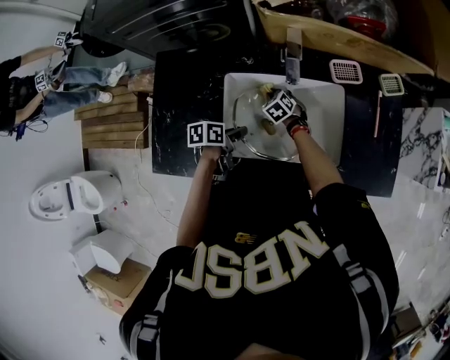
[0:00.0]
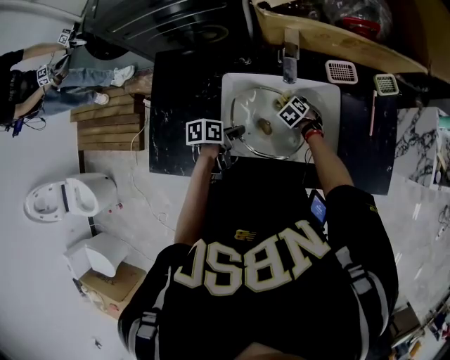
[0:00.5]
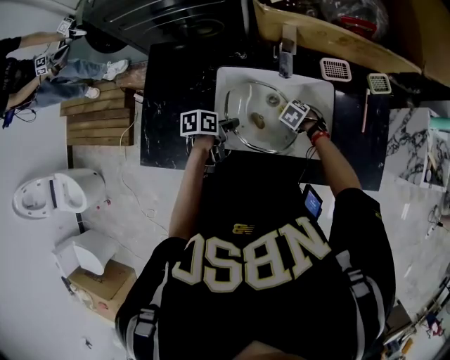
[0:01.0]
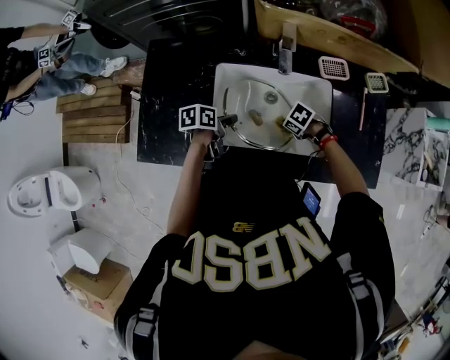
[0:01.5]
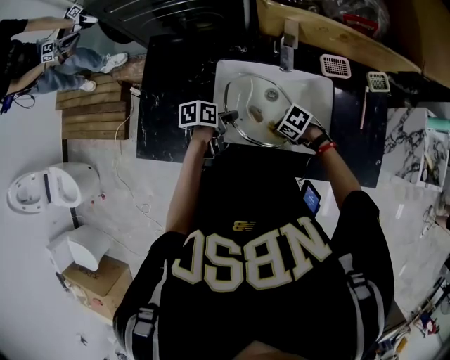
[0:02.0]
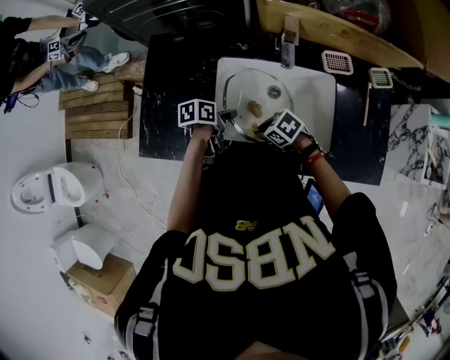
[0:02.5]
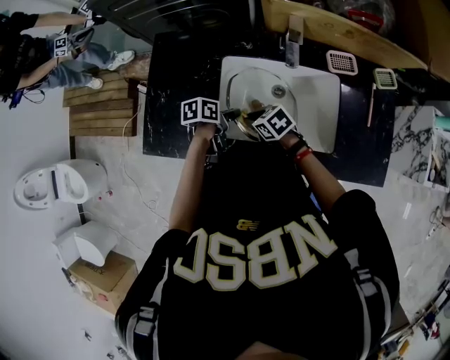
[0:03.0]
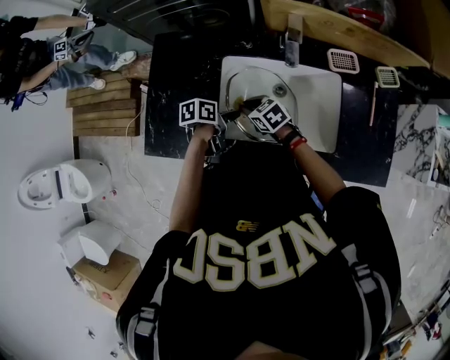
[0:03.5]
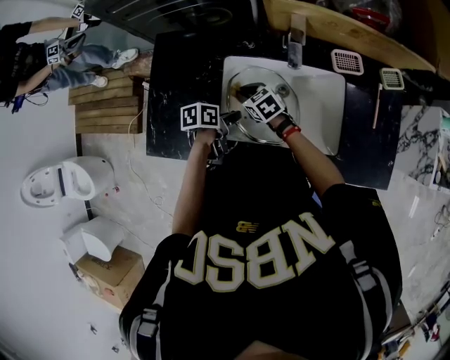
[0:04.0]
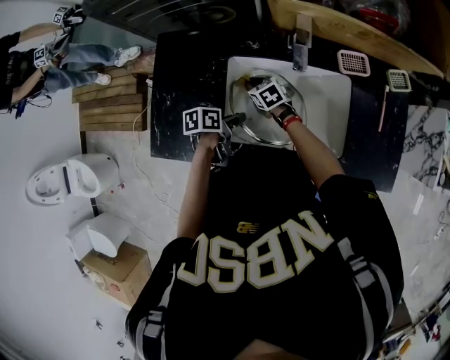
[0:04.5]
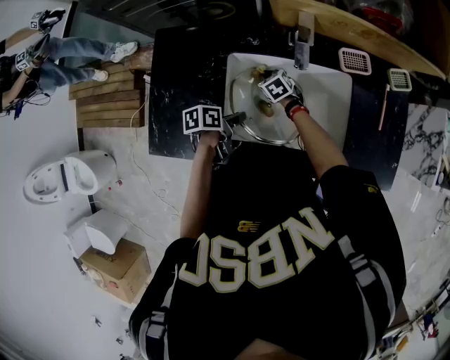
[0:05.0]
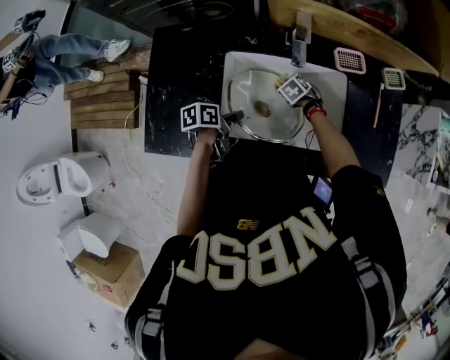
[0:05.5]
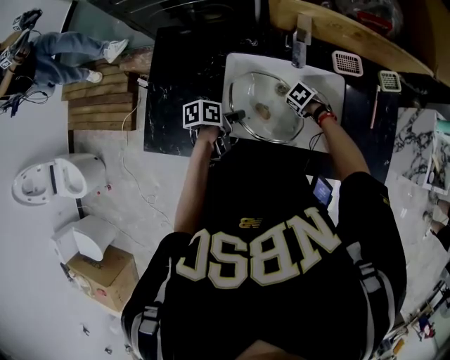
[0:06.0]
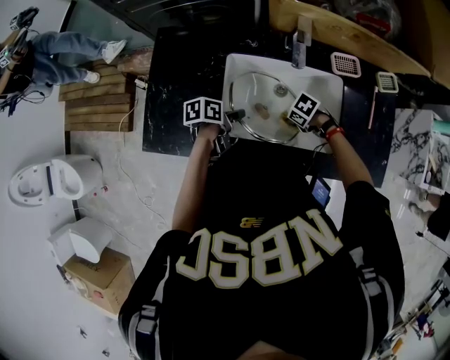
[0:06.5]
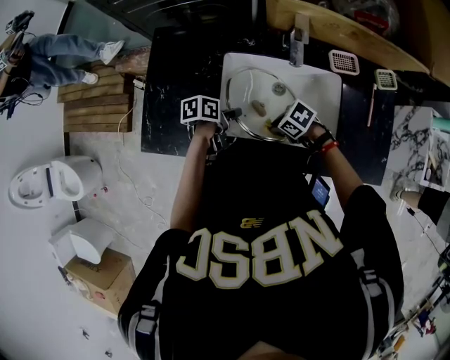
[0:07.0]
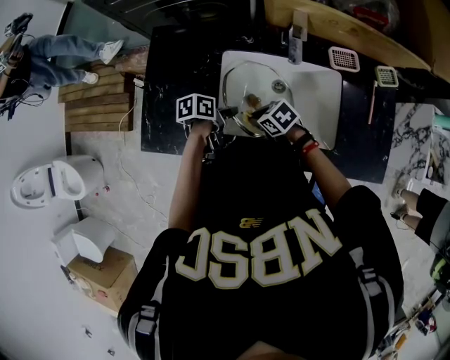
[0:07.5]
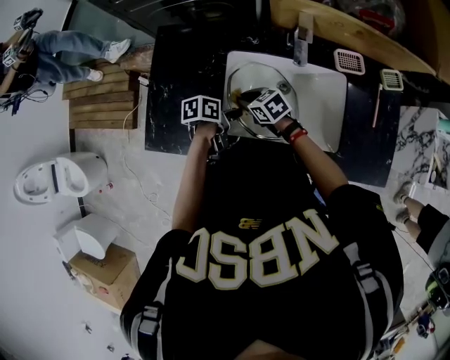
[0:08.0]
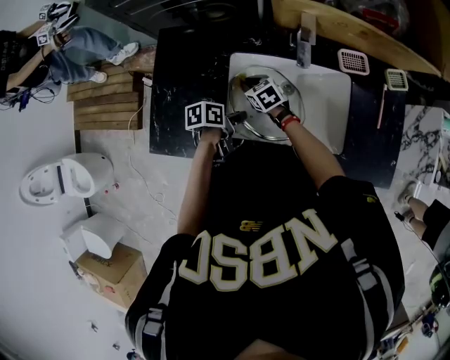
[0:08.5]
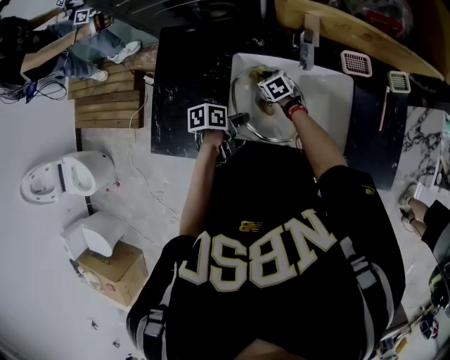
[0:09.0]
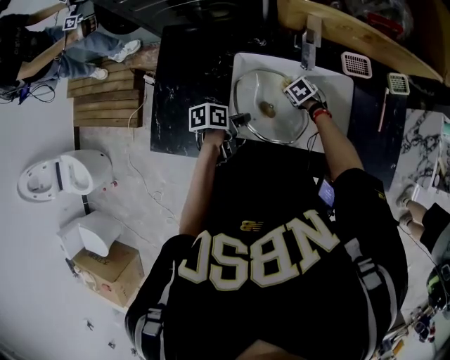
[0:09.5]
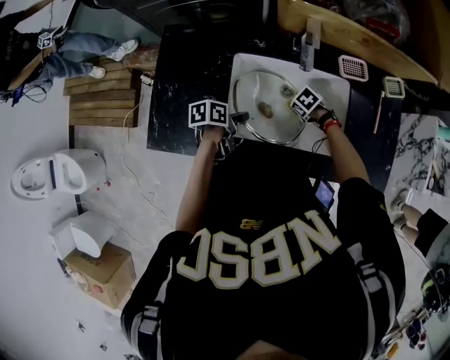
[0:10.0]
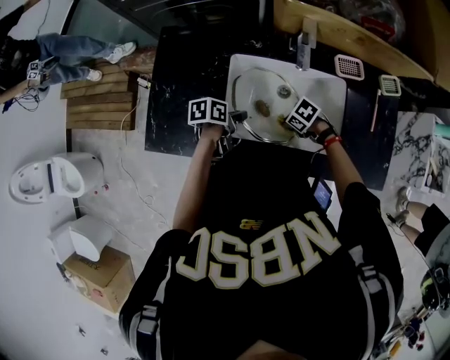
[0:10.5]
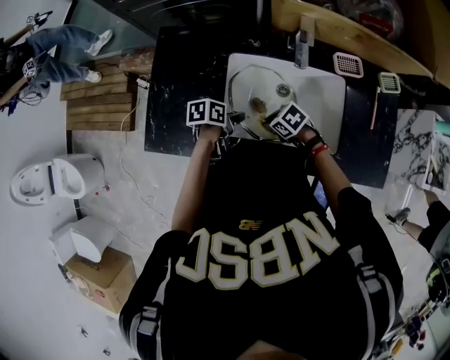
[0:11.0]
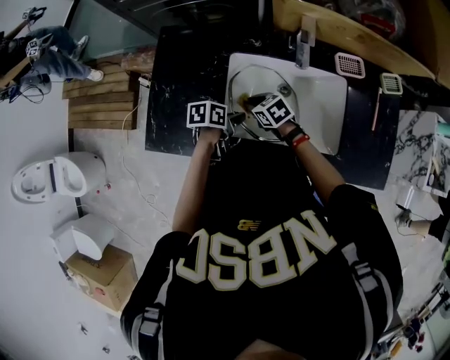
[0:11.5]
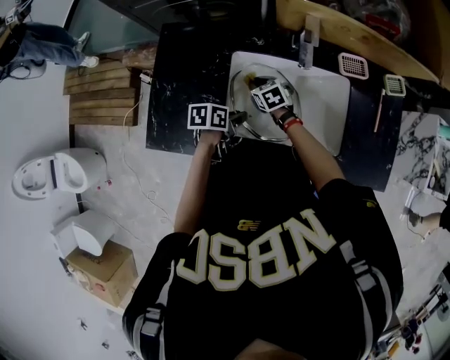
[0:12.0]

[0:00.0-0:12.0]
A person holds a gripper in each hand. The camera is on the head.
0:00.0 to 0:02.0: The right gripper ends up about 20 cm from where it was, and swivels some 40 degrees.
0:02.0 to 0:04.0: The right gripper ends up some 20 cm from where it was, and changes its angle by some 40 degrees.
0:04.0 to 0:06.0: The right gripper moves about 20 cm, and points its fingers some 40 degrees further downward.
0:06.0 to 0:08.0: The right gripper changes place by roughly 25 cm, and tips its fingers upward by some 40 degrees.
0:08.0 to 0:10.0: The right gripper shifts by some 20 cm, and angles its fingers downward, by some 30 degrees.
0:10.0 to 0:12.0: The right gripper ends up about 20 cm from where it was, and turns by about 40 degrees.

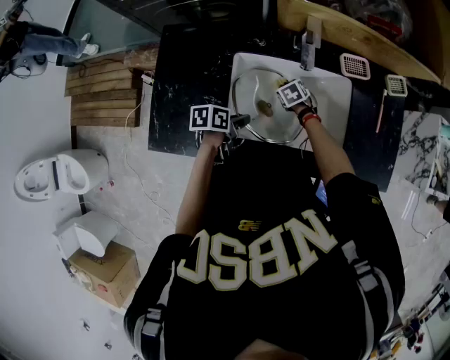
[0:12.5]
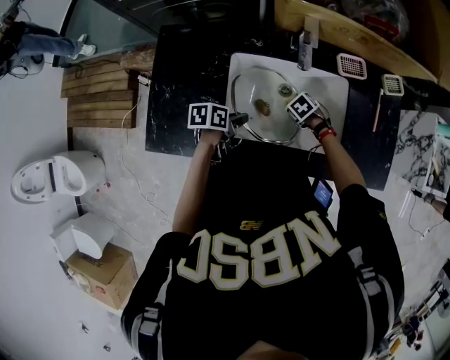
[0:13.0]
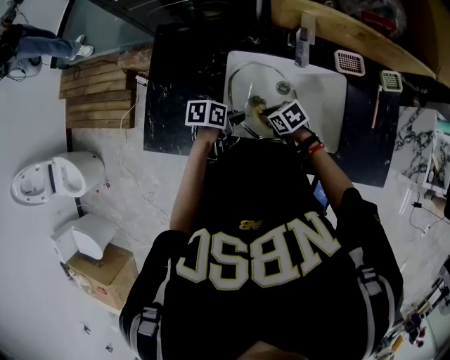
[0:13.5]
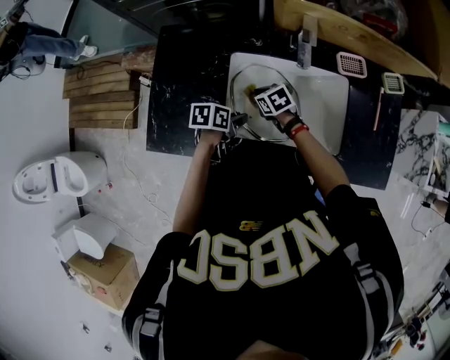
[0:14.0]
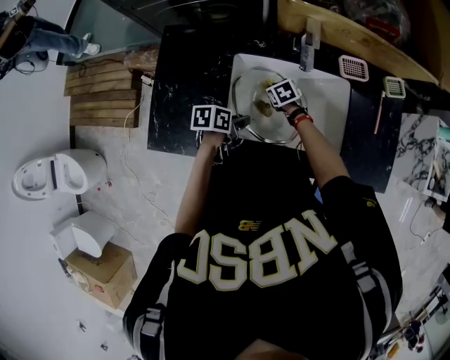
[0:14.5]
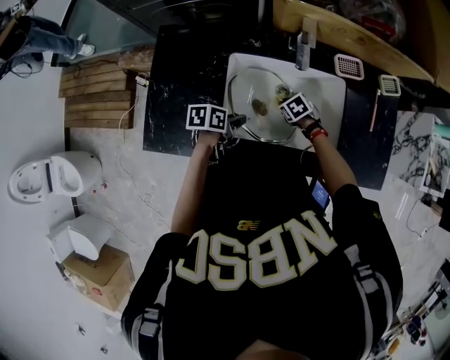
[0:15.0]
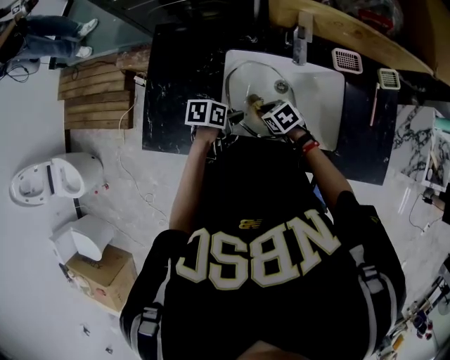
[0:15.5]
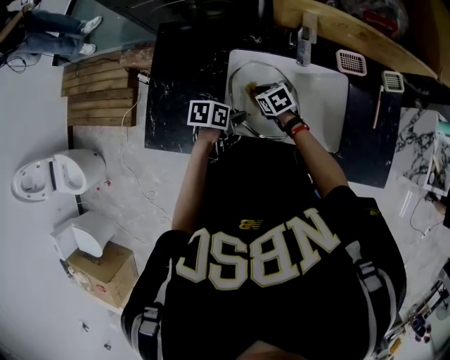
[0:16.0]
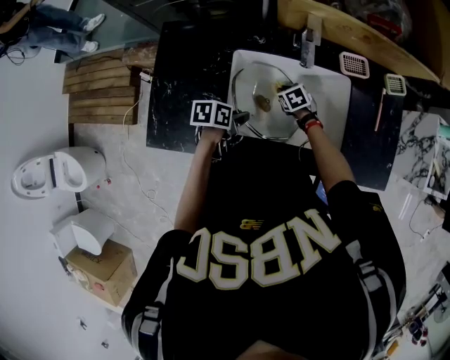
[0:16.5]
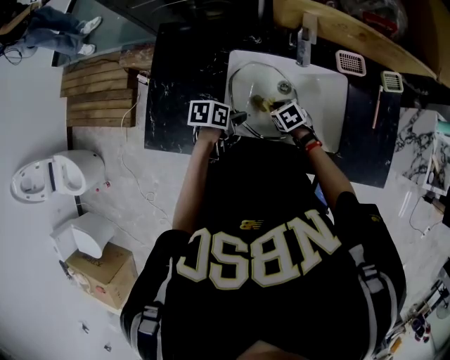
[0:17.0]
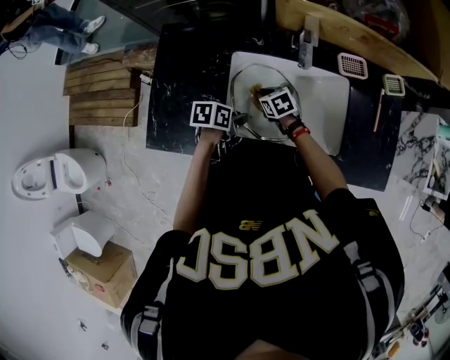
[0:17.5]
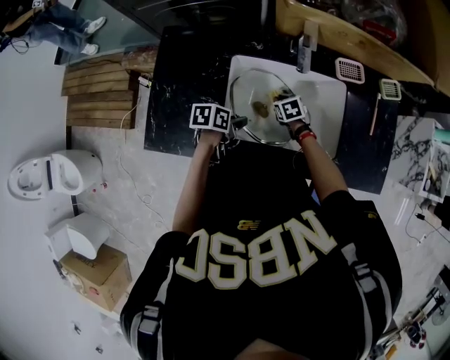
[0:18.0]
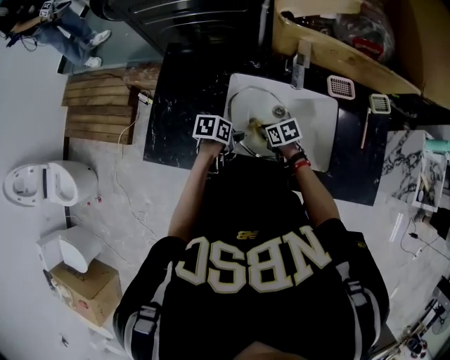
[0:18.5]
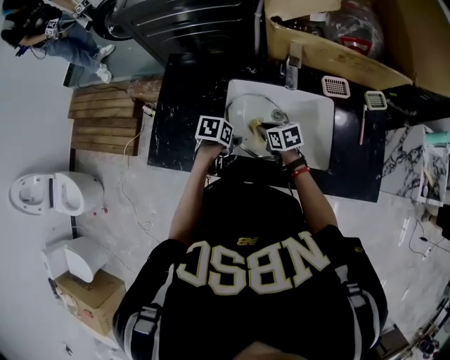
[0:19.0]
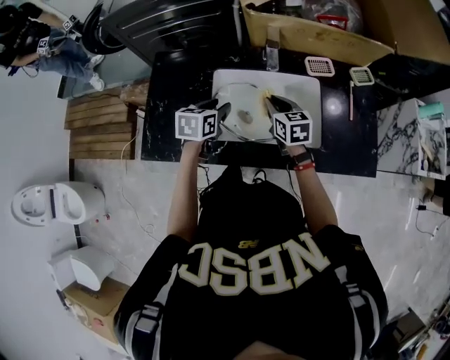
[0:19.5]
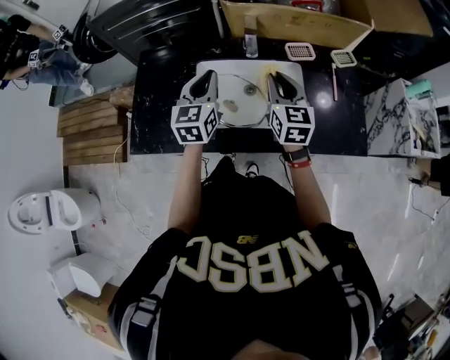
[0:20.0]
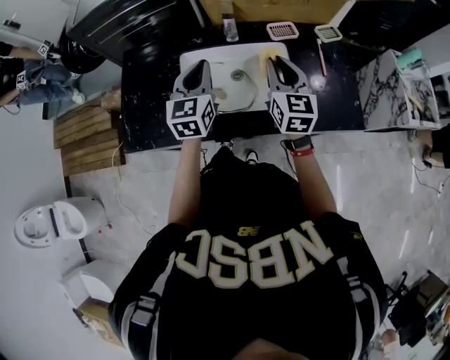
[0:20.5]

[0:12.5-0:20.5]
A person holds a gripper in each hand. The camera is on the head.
0:12.5 to 0:14.5: The right gripper travels upward and back again, about 10 cm each way.
0:16.5 to 0:18.5: The right gripper goes up and down, roughly 5 cm each way, reversing 2 times, and swivels roughly 20 degrees.
0:18.5 to 0:20.5: The right gripper heads upward, covering roughly 30 cm, and tilts its fingers some 40 degrees upward.

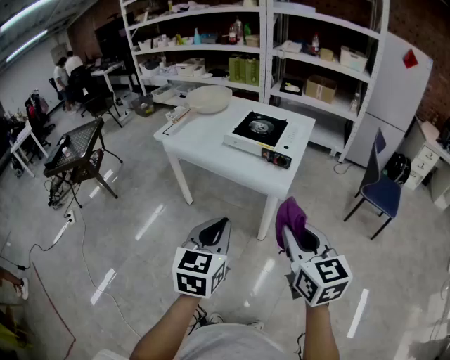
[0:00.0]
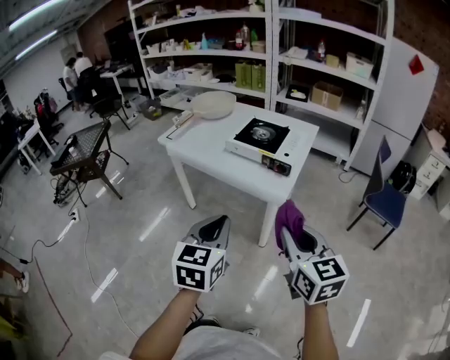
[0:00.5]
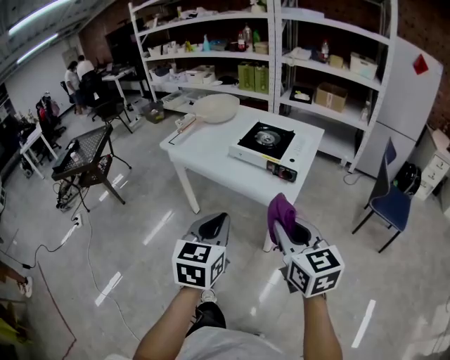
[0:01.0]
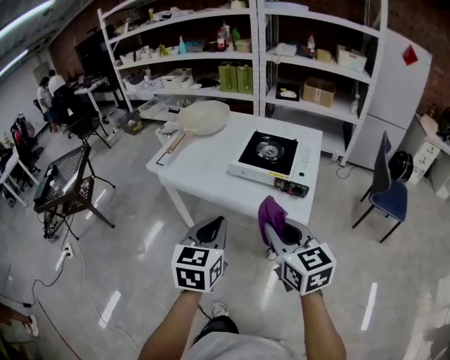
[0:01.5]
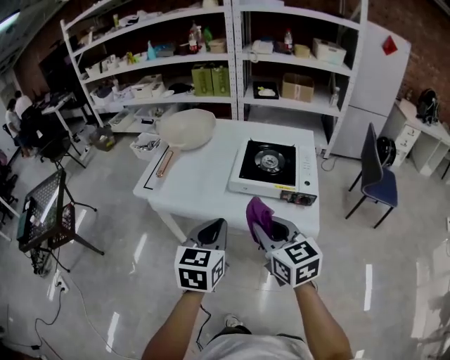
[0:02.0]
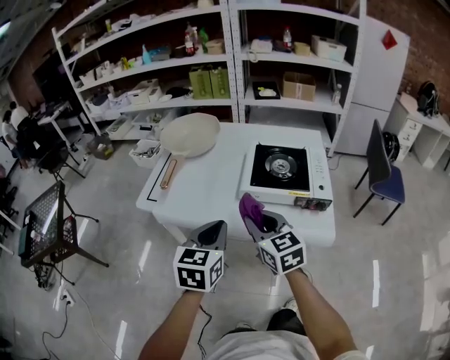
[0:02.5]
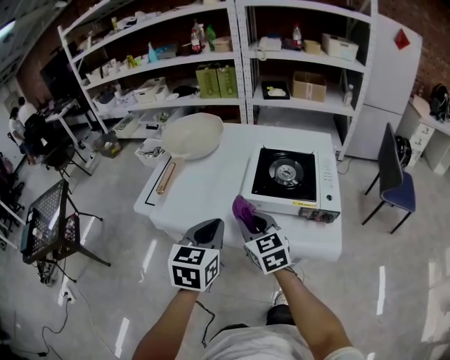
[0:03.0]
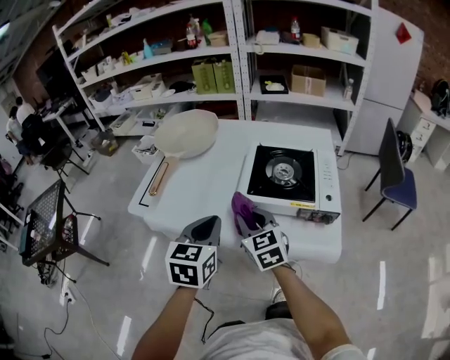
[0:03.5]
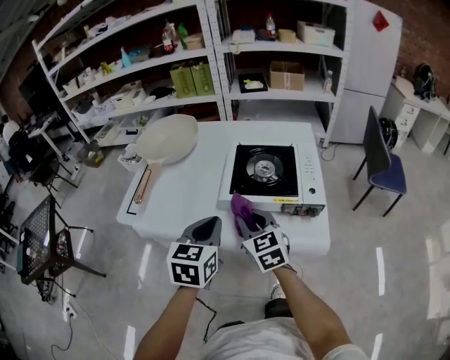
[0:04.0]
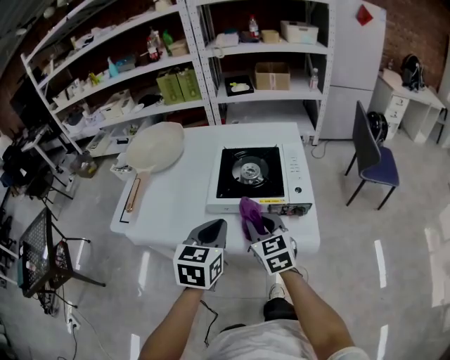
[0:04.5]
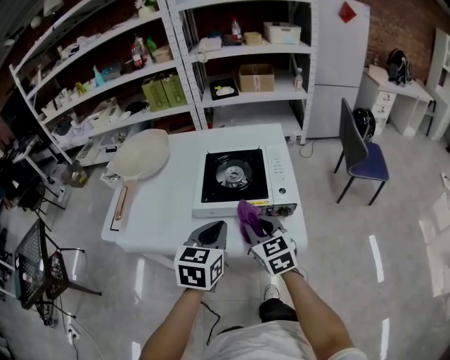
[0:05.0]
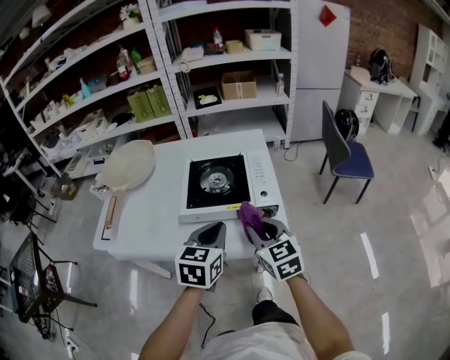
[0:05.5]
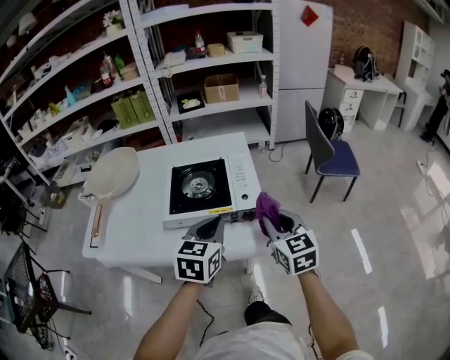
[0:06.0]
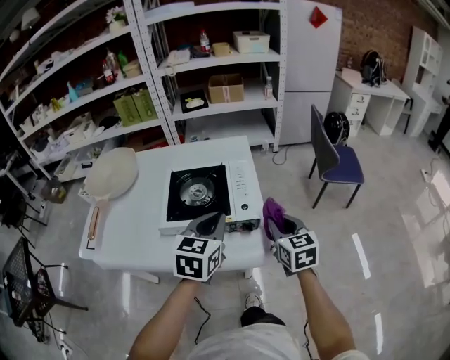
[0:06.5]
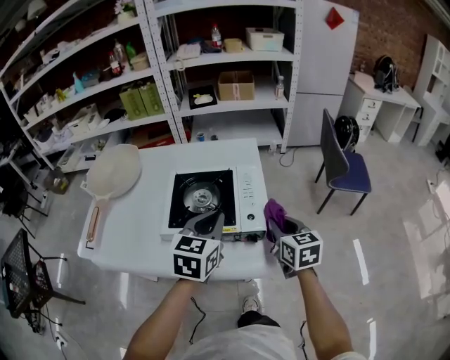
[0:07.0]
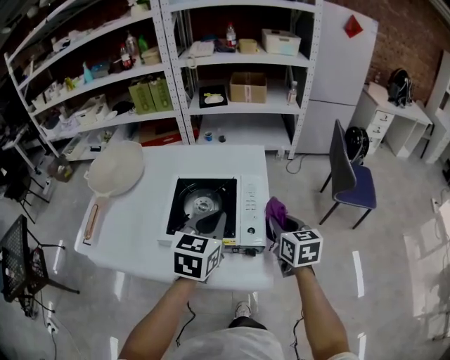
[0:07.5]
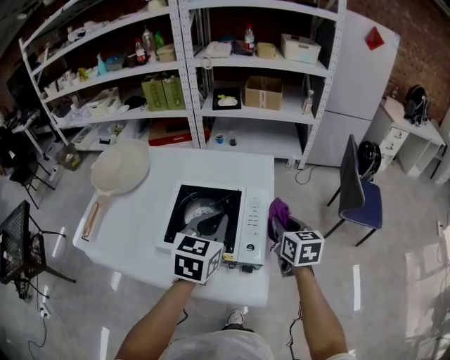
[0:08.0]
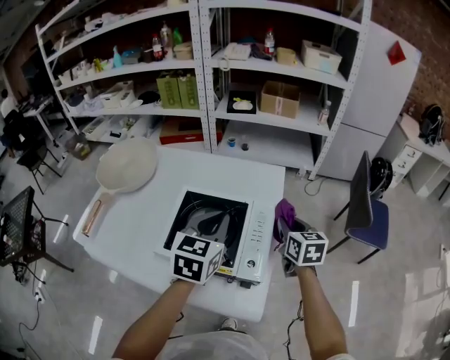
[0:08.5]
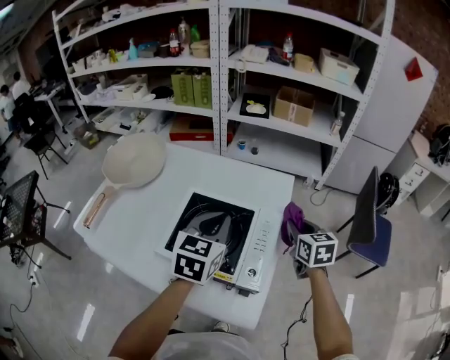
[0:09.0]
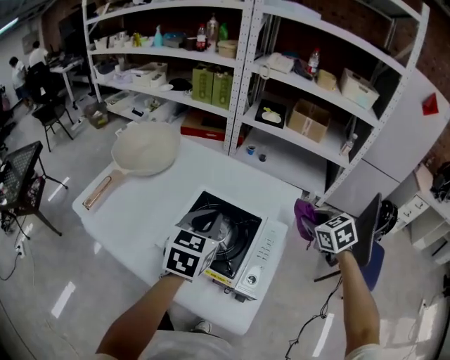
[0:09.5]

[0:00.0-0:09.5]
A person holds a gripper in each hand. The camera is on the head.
0:00.0 to 0:02.0: The left gripper heads forward, covering about 30 cm; the right gripper heads forward and to the left, covering approximately 35 cm.
0:02.0 to 0:04.0: Both grippers move forward and downward, roughly 15 cm.
0:04.0 to 0:05.5: Both grippers move to the right, some 15 cm.
0:05.5 to 0:07.5: Both grippers move forward and to the right, about 15 cm.
0:07.5 to 0:09.5: The left gripper travels forward and to the left by approximately 10 cm. The right gripper is displaced forward by some 20 cm, and turns by roughly 40 degrees.
